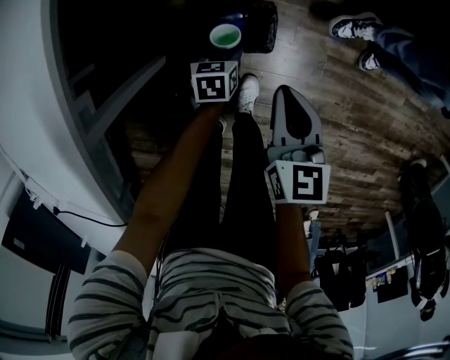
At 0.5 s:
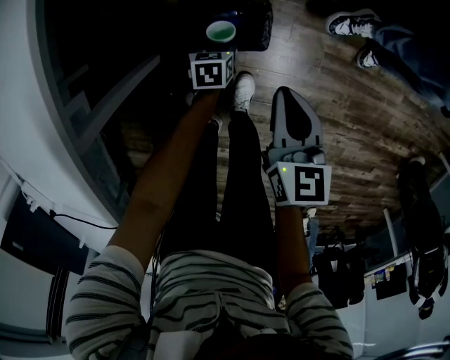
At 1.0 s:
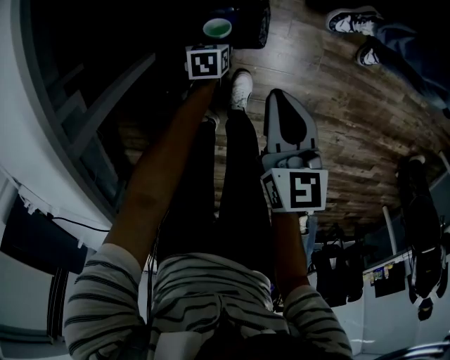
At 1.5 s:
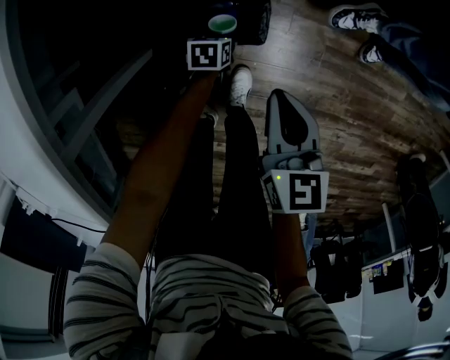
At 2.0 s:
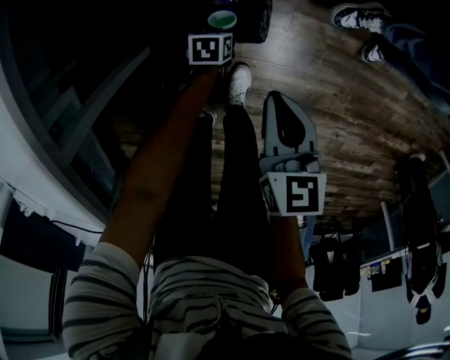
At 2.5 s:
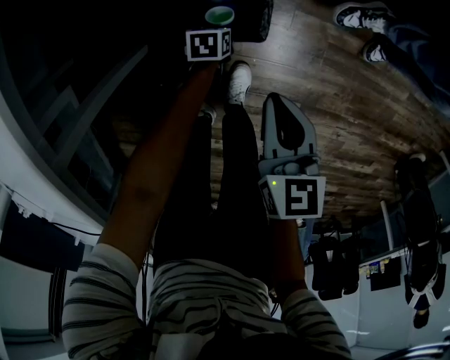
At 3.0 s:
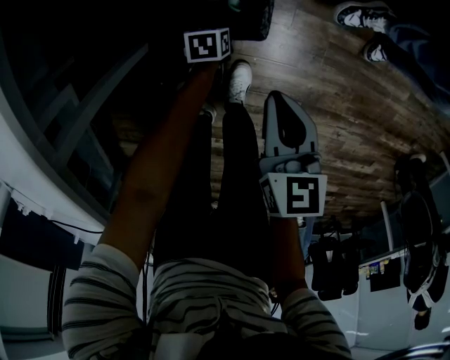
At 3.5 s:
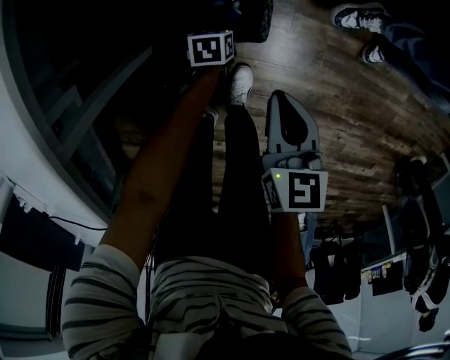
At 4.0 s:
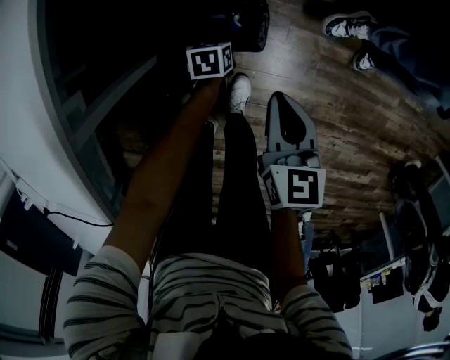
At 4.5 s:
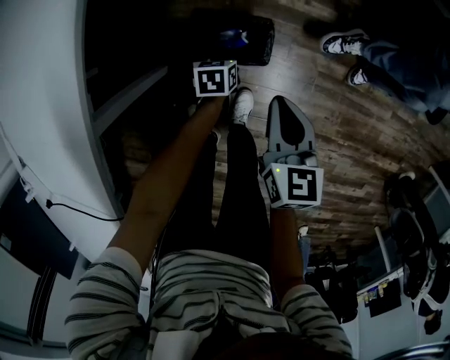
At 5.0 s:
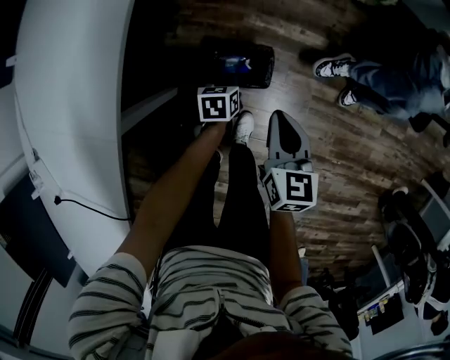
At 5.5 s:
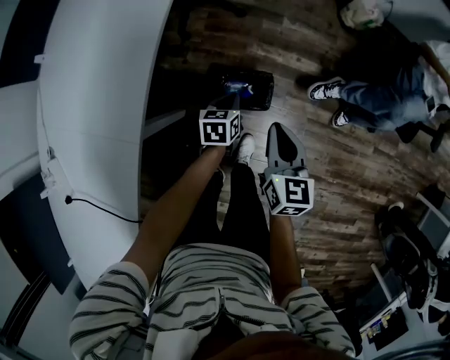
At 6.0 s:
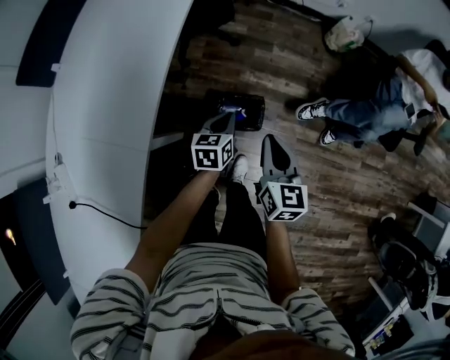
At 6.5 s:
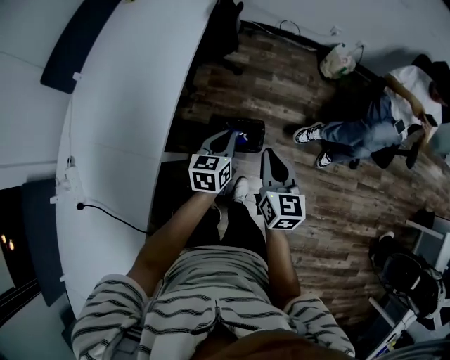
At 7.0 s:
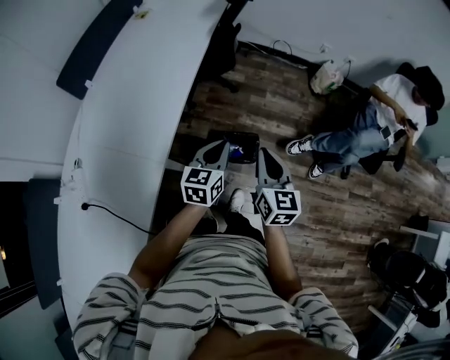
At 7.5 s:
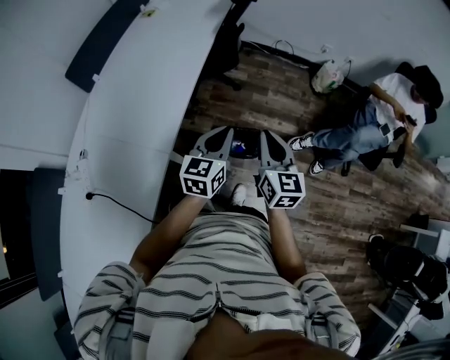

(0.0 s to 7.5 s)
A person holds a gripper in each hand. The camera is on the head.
0.0 s - 2.0 s: The right gripper goes roughly 5 cm downward. The left gripper is displaced downward by some 15 cm.
2.0 s - 4.0 s: The left gripper shifts roughly 10 cm upward, and closes up.
4.0 s - 5.5 s: The right gripper travels upward by about 15 cm. Meanwhile the left gripper is displaced upward by about 25 cm, rotates about 20 degrees, and closes up.
5.5 s - 7.5 s: The right gripper is displaced upward by approximately 20 cm, while the left gripper heads upward, covering about 35 cm, and tilts its fingers roughly 30 degrees upward.

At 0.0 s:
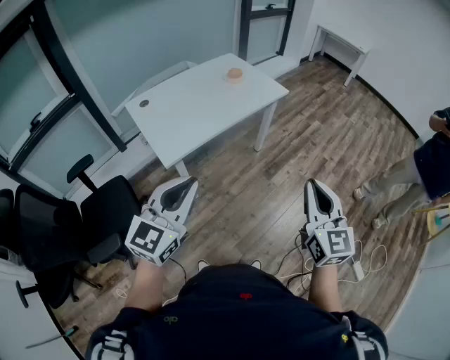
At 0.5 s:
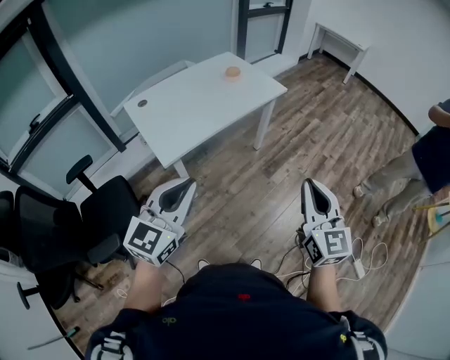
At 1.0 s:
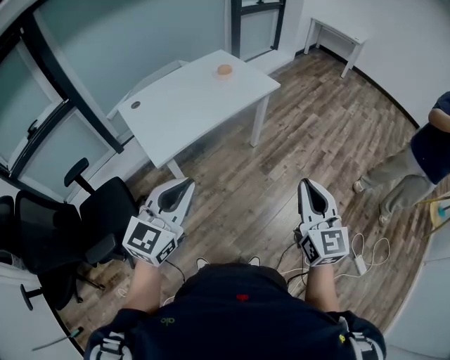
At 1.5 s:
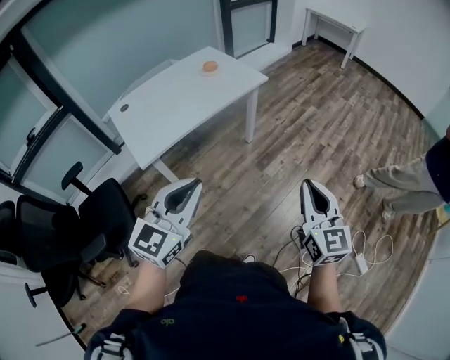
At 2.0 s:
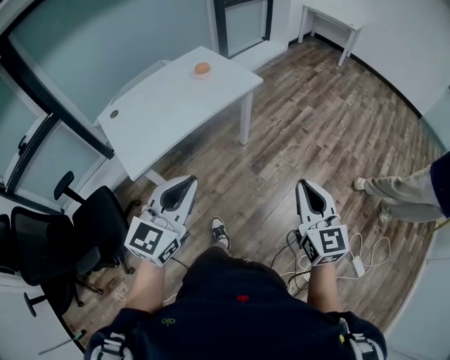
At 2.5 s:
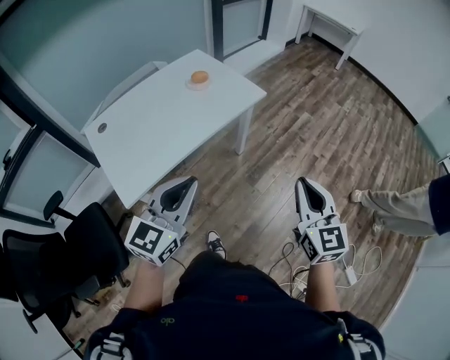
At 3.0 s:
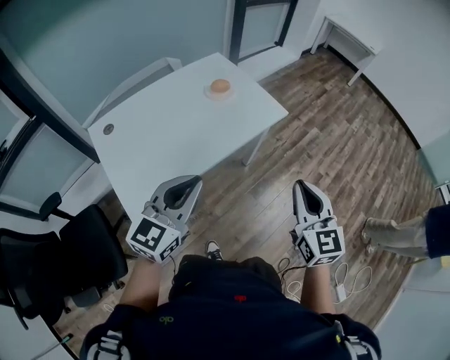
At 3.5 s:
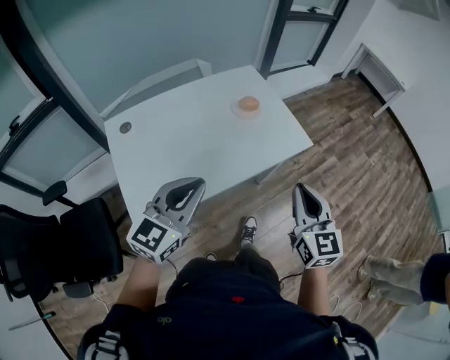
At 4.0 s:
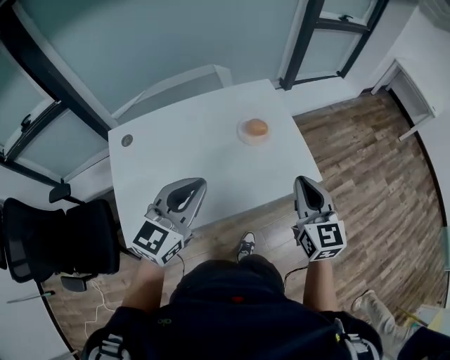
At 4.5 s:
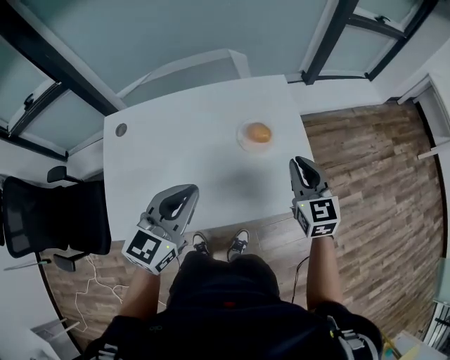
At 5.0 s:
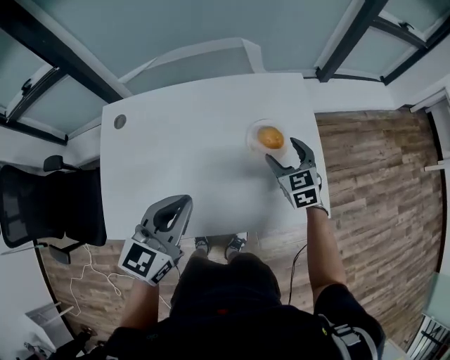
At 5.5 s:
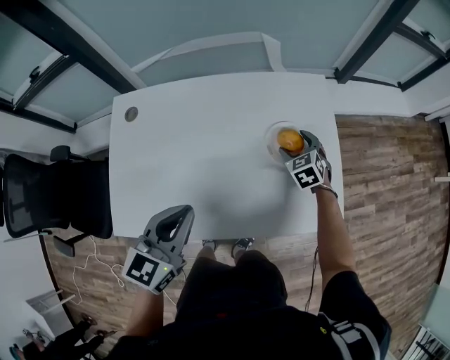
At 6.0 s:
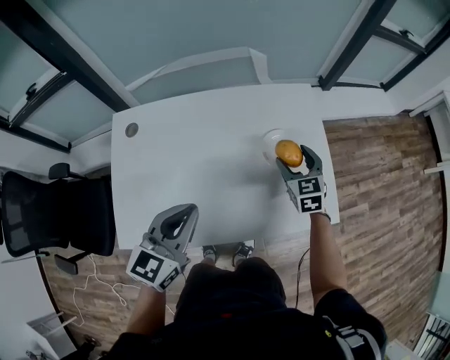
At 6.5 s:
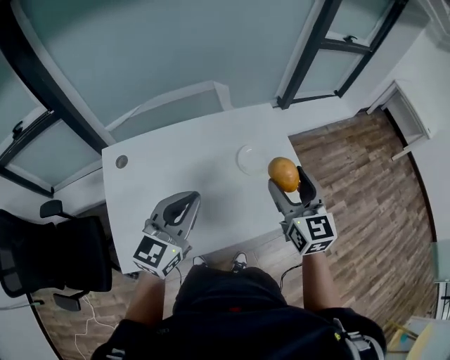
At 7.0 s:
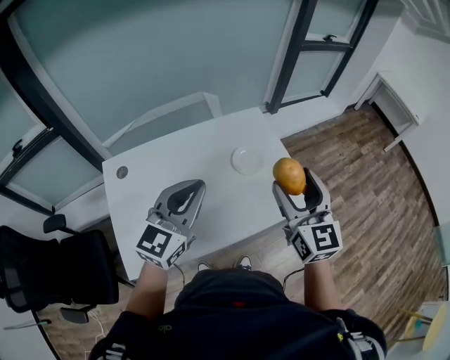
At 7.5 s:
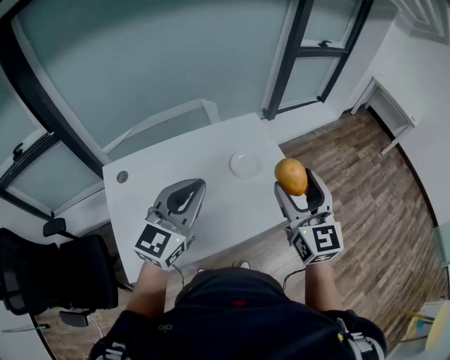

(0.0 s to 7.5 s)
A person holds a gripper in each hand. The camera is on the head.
0.0 s - 2.0 s: The right gripper shifts approximately 20 cm to the right, forward and downward. Meanwhile the left gripper is displaced to the right and forward by about 20 cm.
2.0 s - 4.0 s: The two grippers travel together, forward, roughly 60 cm. The right gripper turns by roughly 20 degrees.
4.0 s - 5.5 s: The left gripper heads downward and forward, covering approximately 15 cm, and changes its angle by roughly 30 degrees, while the right gripper is displaced forward and downward by roughly 50 cm, tips its fingers downward by about 40 degrees, and opens its fingers.
5.5 s - 7.5 s: The left gripper is displaced upward by some 20 cm, and rotates approximately 30 degrees, while the right gripper moves upward and backward, about 50 cm, and tips its fingers upward by some 50 degrees.

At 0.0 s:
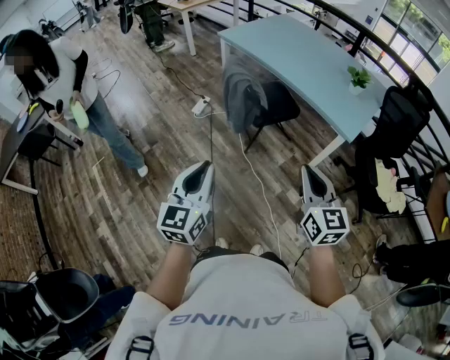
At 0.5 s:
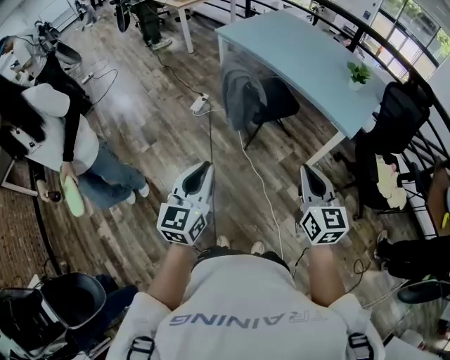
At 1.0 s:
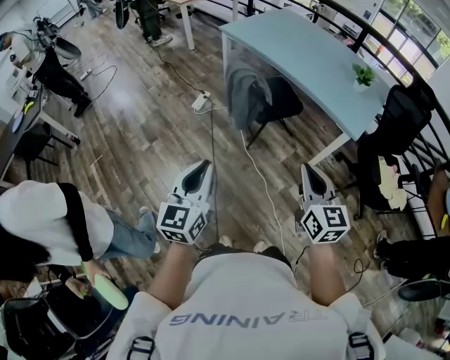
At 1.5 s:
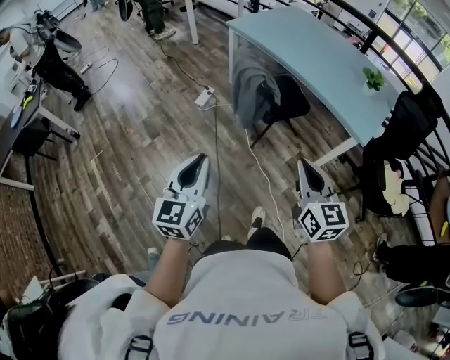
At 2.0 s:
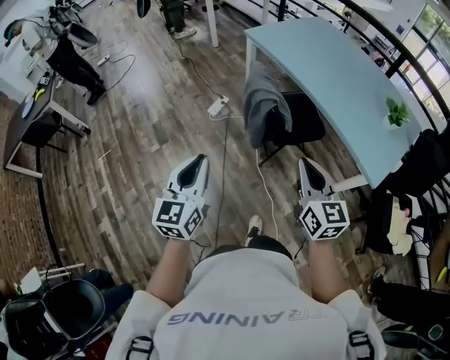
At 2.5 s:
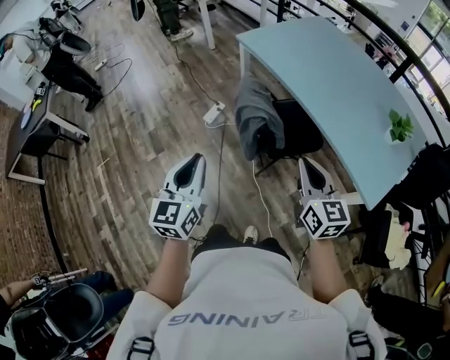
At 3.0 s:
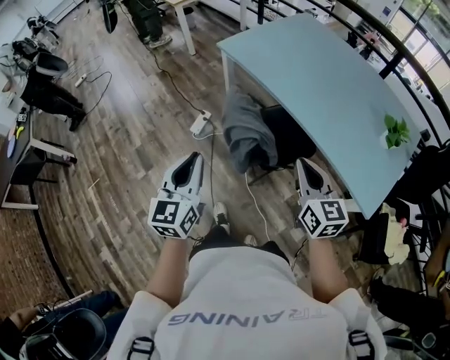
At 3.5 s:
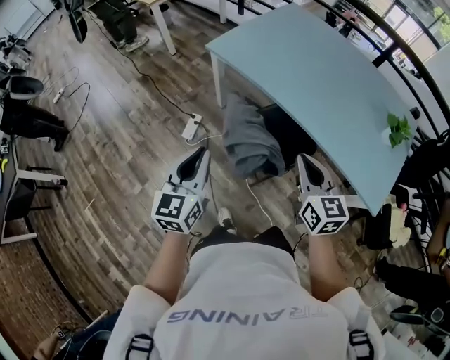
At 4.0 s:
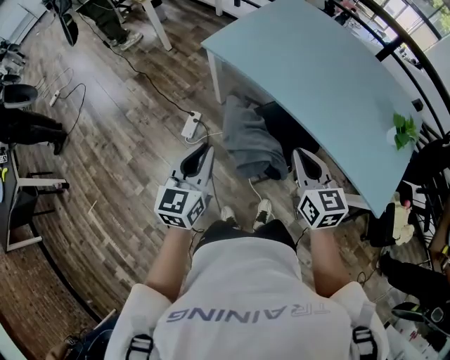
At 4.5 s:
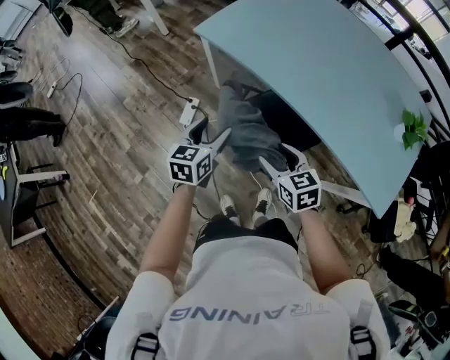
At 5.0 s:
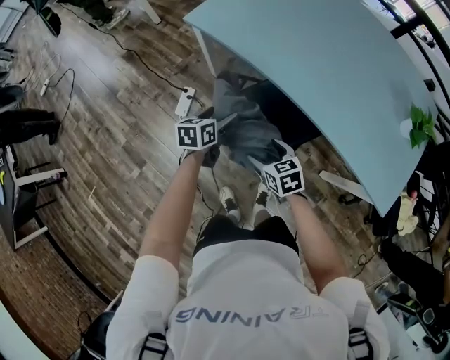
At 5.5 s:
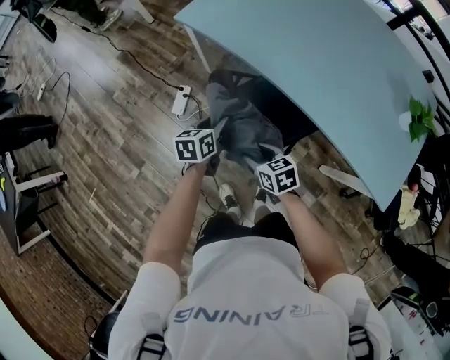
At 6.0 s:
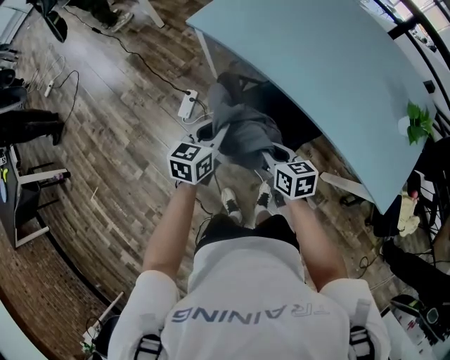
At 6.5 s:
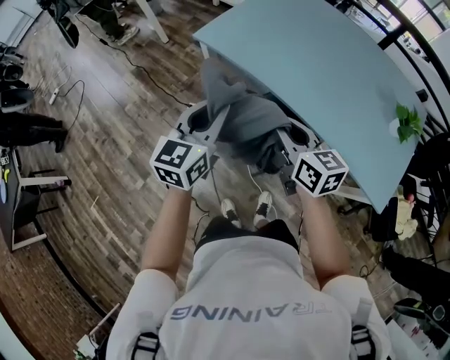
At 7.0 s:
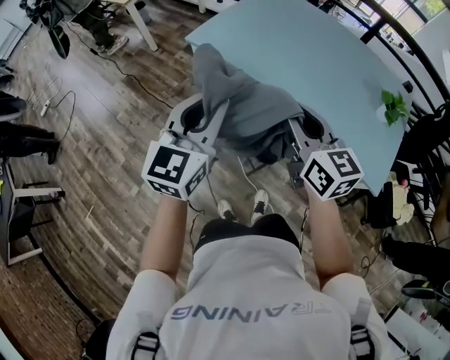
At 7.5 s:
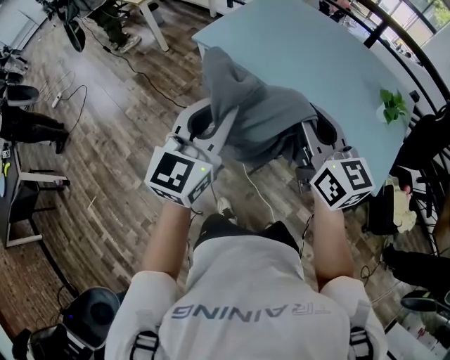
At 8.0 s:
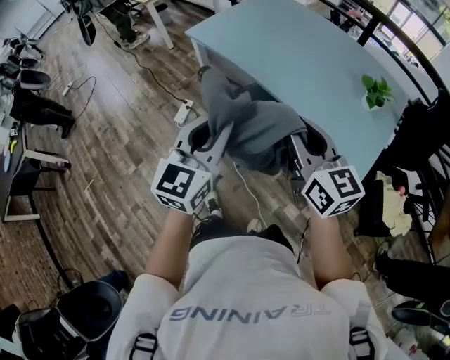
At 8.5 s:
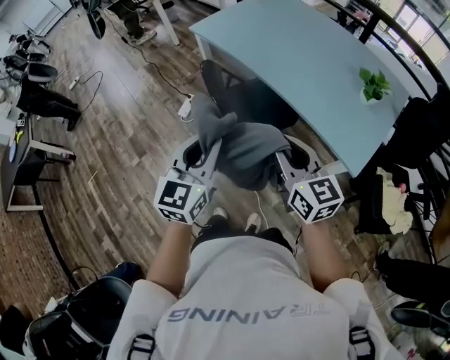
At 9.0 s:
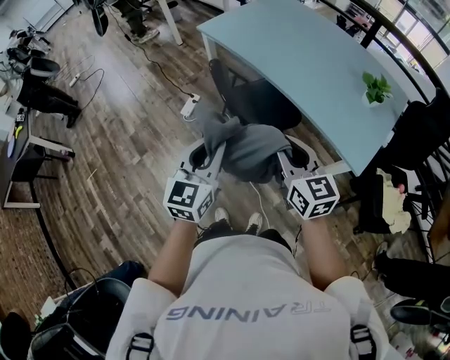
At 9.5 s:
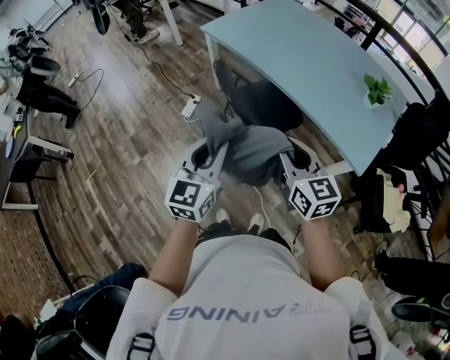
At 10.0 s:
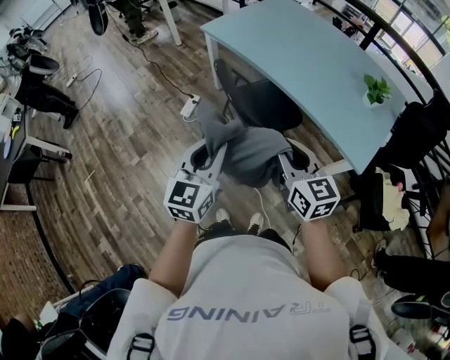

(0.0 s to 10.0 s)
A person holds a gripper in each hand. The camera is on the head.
0.0 s - 2.0 s: Both grippers move forward, approximately 20 cm.
2.0 s - 4.0 s: Both grippers travel together forward, about 40 cm.
4.0 s - 6.0 s: The left gripper moves downward, forward and to the right, roughly 20 cm, and opens, then closes again, while the right gripper heads downward, covering about 20 cm, turns by about 30 degrees, and opens, then closes once more.
6.0 s - 8.0 s: The left gripper is displaced backward, upward and to the right by approximately 40 cm, and changes its angle by some 30 degrees. The right gripper goes about 40 cm upward, to the right and backward, and tips its fingers upward by about 30 degrees.
8.0 s - 10.0 s: The grippers both shift backward, to the left and downward by roughly 15 cm.

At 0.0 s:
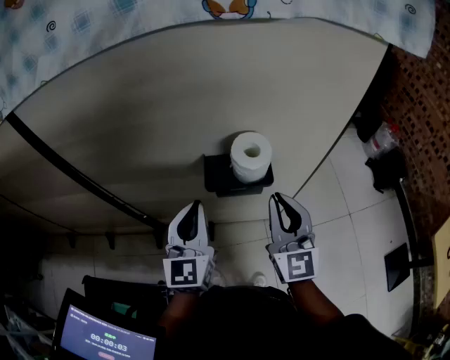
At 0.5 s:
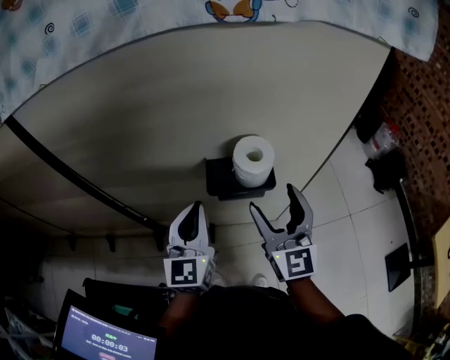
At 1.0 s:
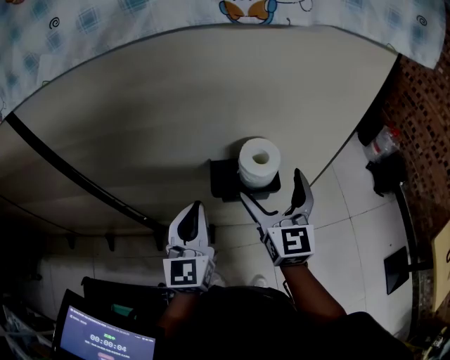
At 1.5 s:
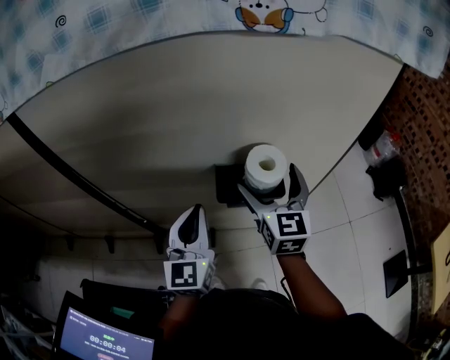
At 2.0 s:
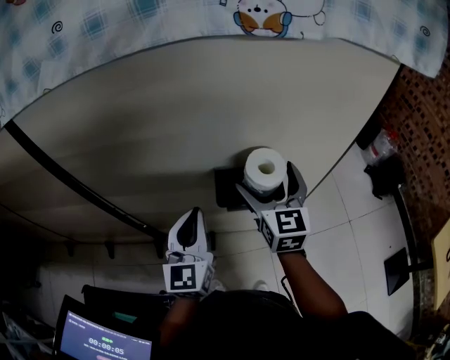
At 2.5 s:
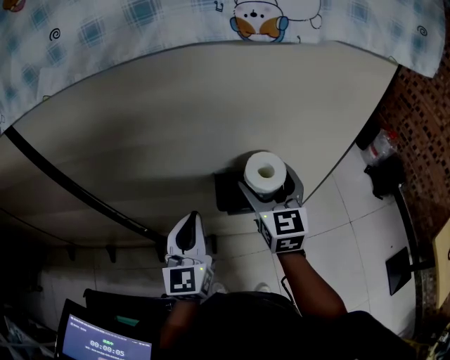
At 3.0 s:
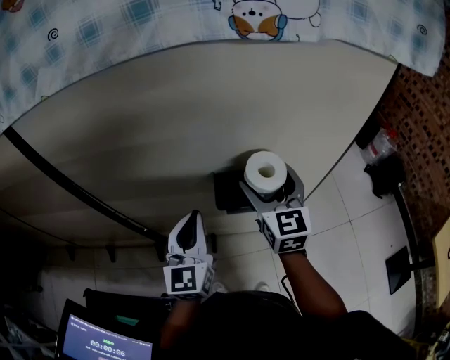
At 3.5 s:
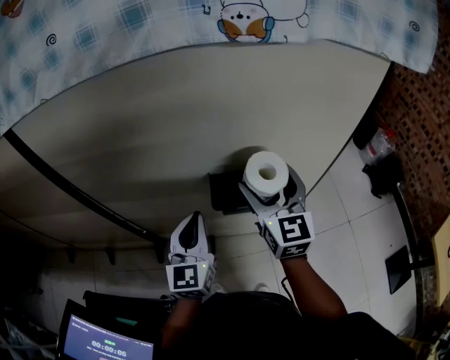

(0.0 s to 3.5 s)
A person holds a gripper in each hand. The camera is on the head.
0.0 s - 2.0 s: The right gripper shifts roughly 10 cm forward, and opens up.
2.0 s - 3.5 s: There are only small adjustments of the grippers.
